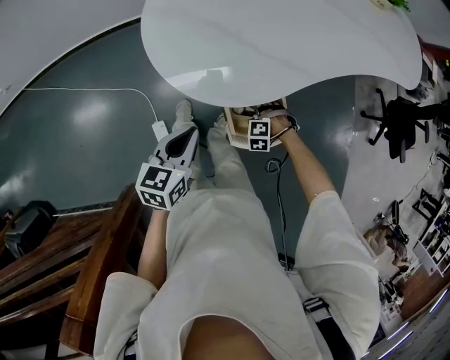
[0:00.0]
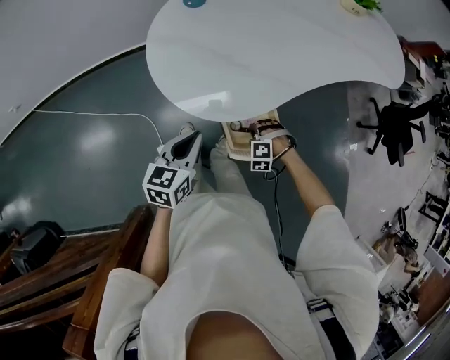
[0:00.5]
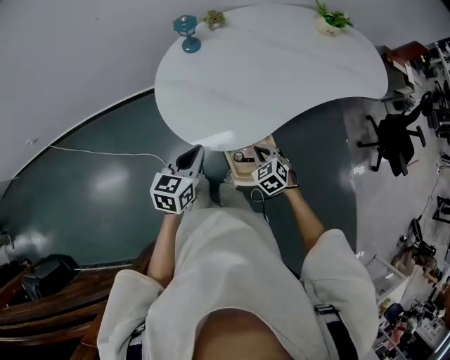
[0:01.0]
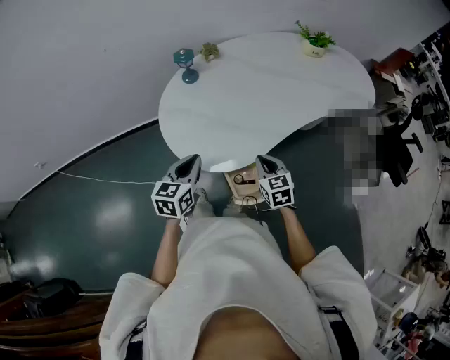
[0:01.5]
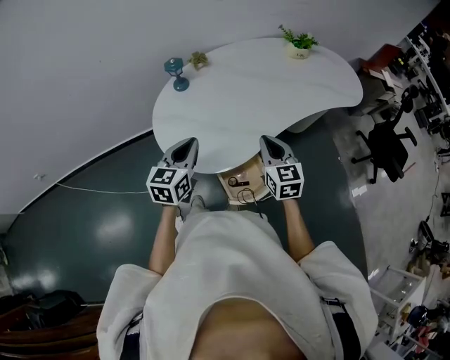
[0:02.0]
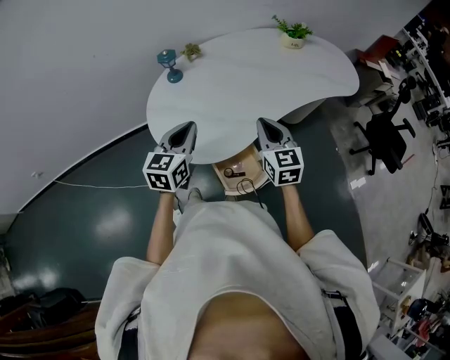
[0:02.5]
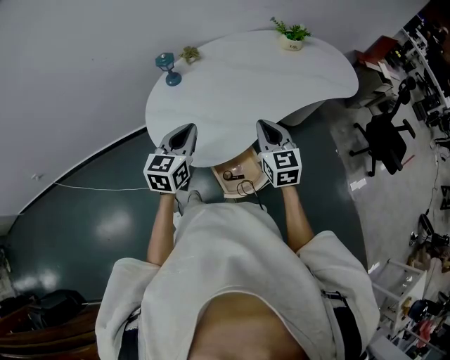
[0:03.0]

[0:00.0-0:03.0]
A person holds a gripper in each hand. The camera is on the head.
0:00.0 to 0:01.5: The right gripper is displaced upward by some 30 cm, rotates around the line of its fingers by about 80 degrees, clockwise from behind, and closes. Meanwhile the left gripper shifts some 10 cm upward.
0:01.5 to 0:03.0: The right gripper shifts about 15 cm upward, and rotates approximately 20 degrees. The left gripper is displaced upward and to the right by about 10 cm.

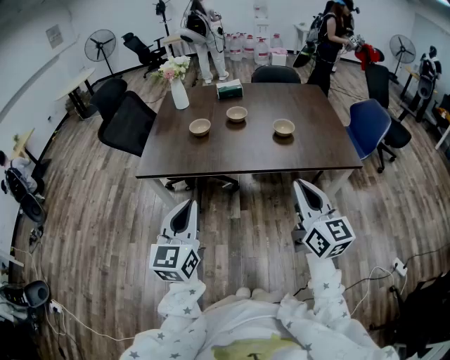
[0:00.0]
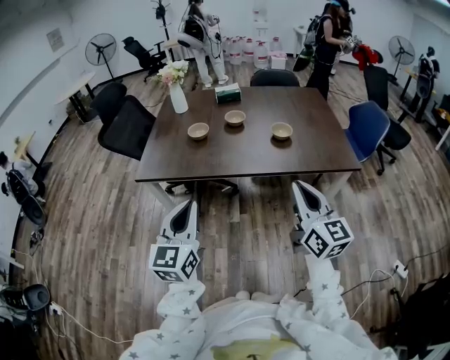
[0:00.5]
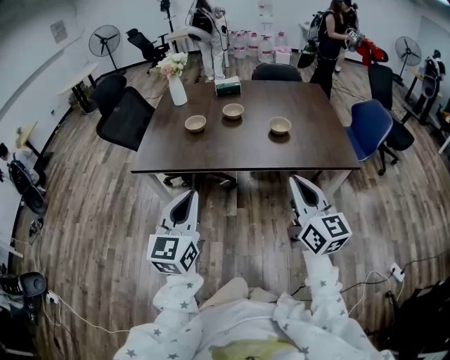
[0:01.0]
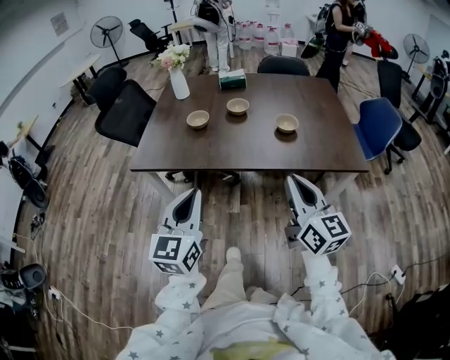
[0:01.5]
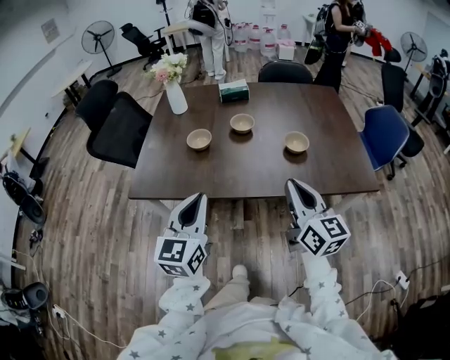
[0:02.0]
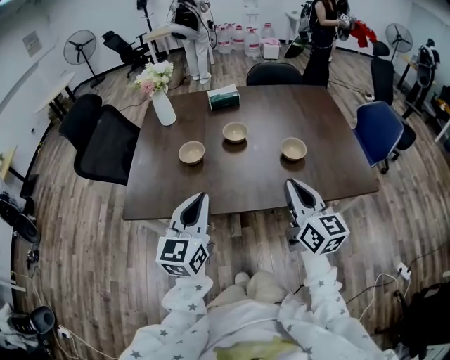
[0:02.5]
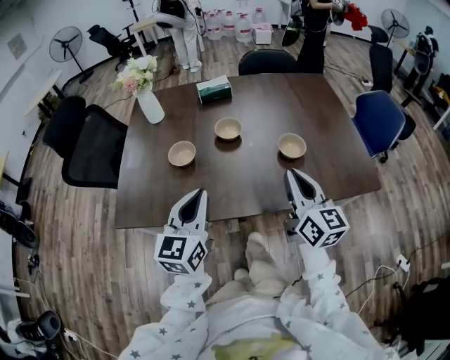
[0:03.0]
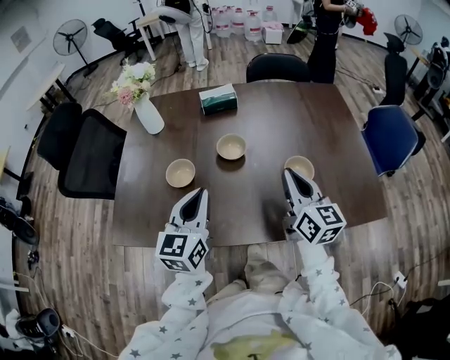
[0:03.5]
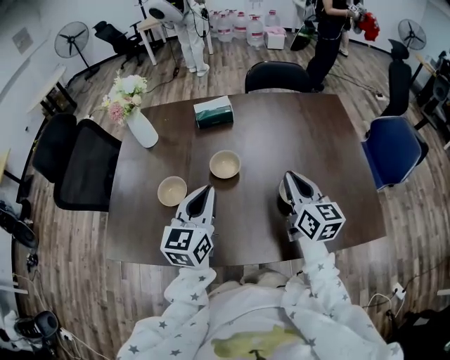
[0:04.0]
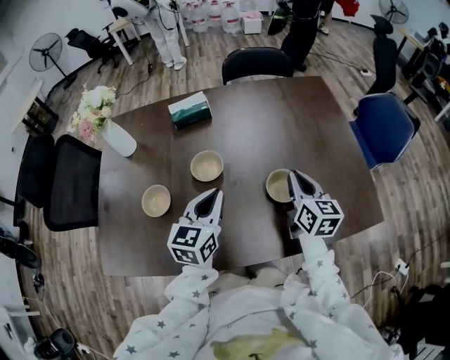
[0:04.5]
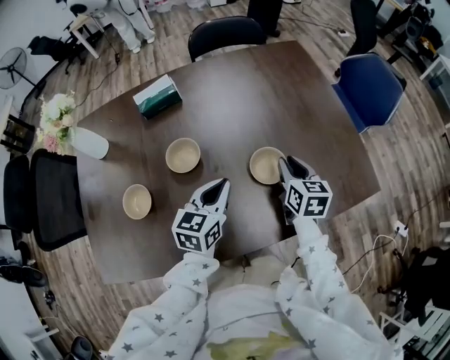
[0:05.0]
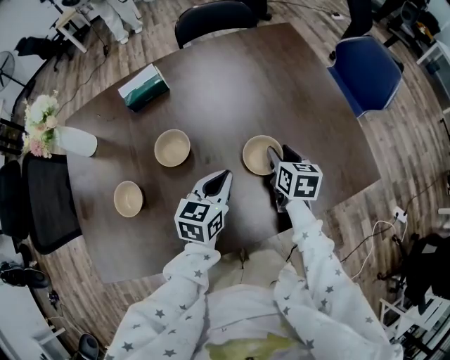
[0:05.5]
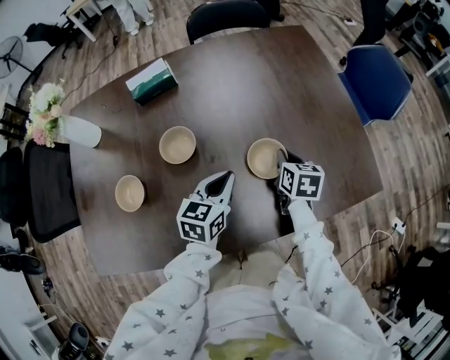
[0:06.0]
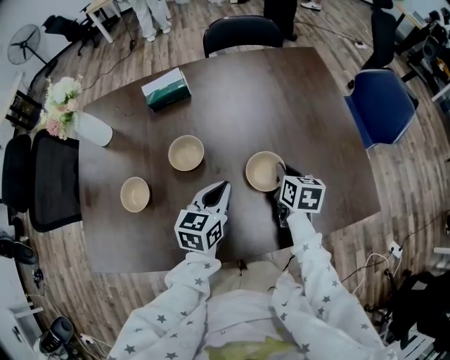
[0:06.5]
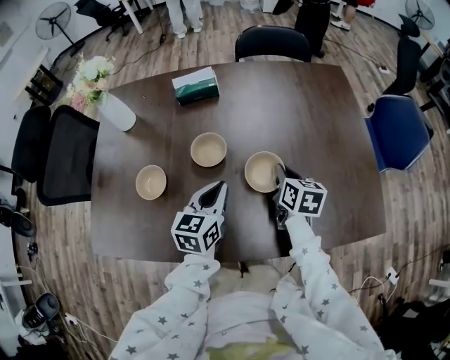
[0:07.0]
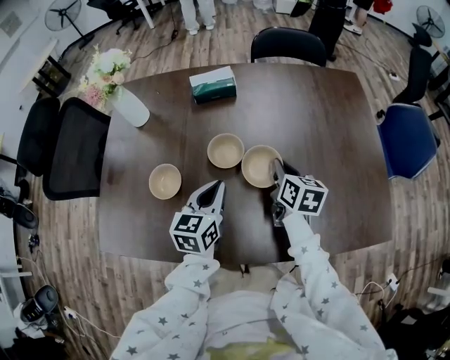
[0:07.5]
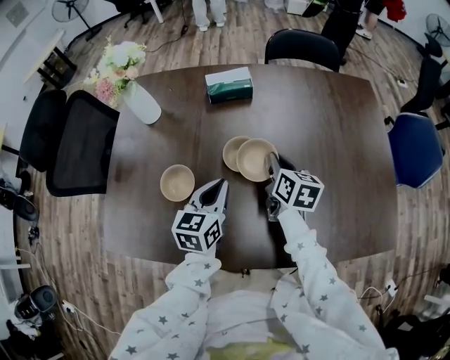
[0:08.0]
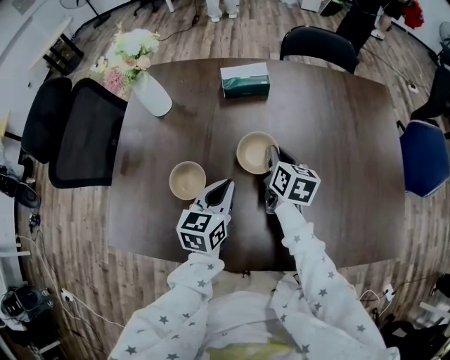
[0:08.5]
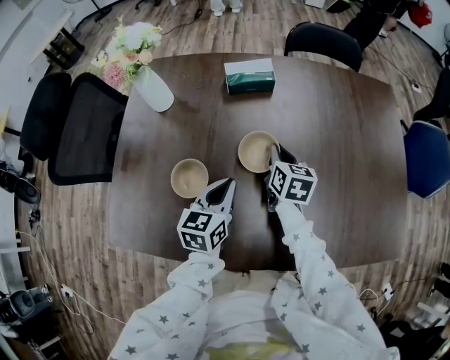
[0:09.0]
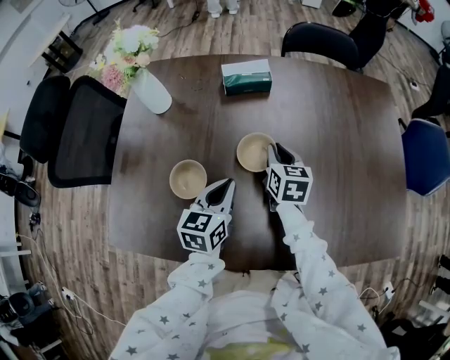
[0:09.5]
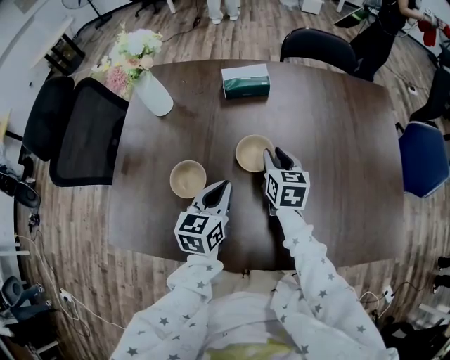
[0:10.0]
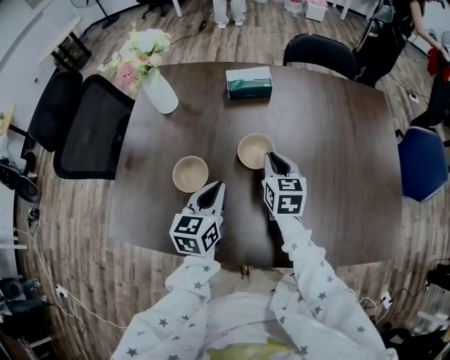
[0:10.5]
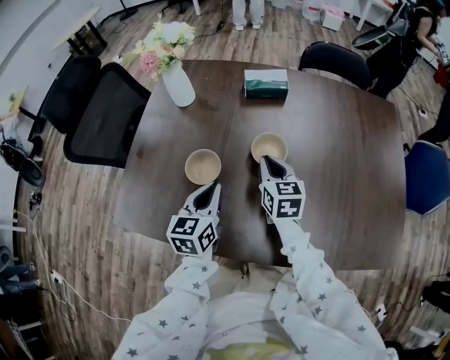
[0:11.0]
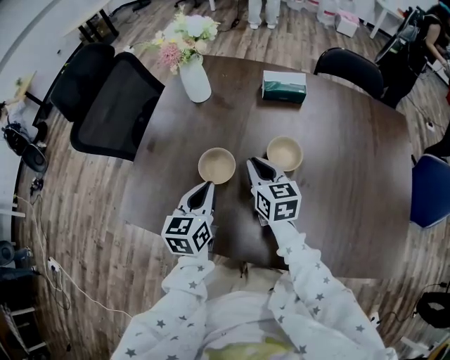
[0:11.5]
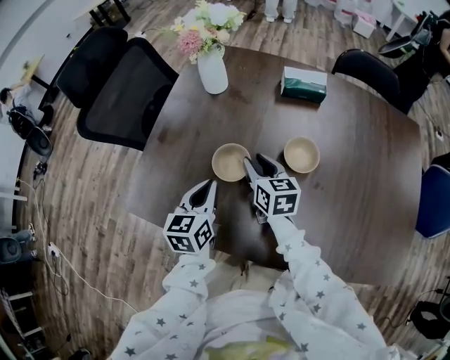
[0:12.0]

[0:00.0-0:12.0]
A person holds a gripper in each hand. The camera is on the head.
0:00.0 to 0:02.0: Both grippers travel together forward, approximately 15 cm.
0:02.0 to 0:04.0: Both grippers move forward, approximately 30 cm.
0:04.0 to 0:06.0: The left gripper shifts by roughly 20 cm, and rotates about 30 degrees. The right gripper heads downward, covering about 20 cm, points its fingers roughly 30 degrees further downward, and opens, then closes again.
0:06.0 to 0:08.0: The grippers both shift to the left by some 20 cm. The right gripper changes its angle by approximately 20 degrees; the left gripper turns by approximately 20 degrees.
0:08.0 to 0:10.0: The right gripper moves some 5 cm, and opens.
0:10.0 to 0:12.0: The grippers both shift to the left by approximately 20 cm. The left gripper changes its angle by approximately 20 degrees. The right gripper rotates roughly 30 degrees.

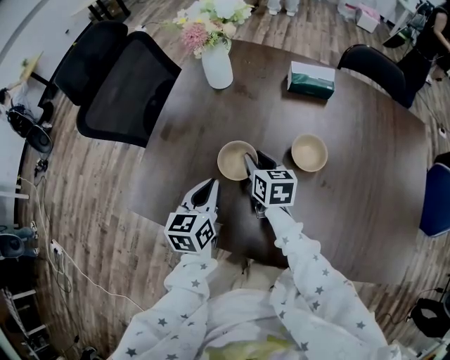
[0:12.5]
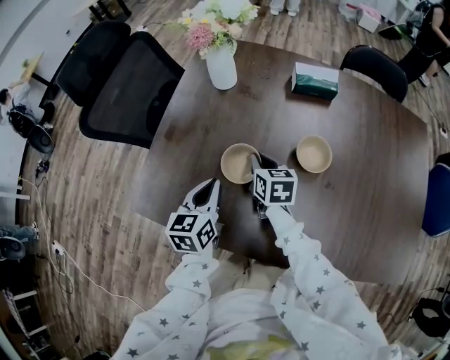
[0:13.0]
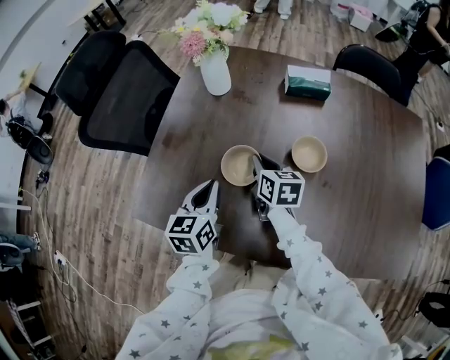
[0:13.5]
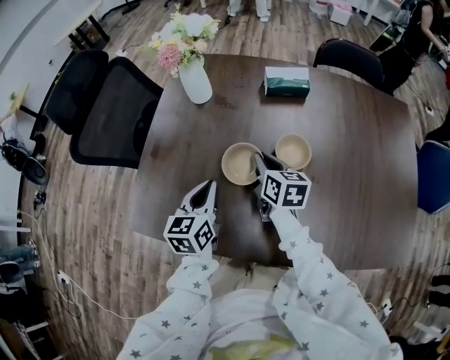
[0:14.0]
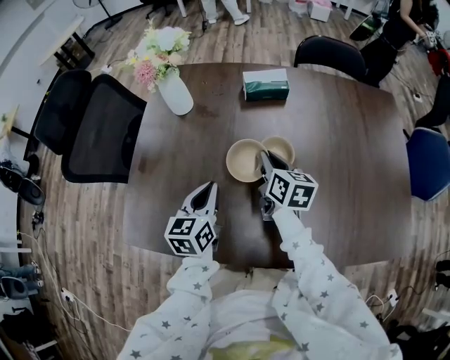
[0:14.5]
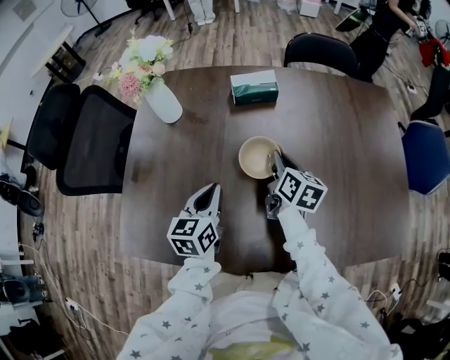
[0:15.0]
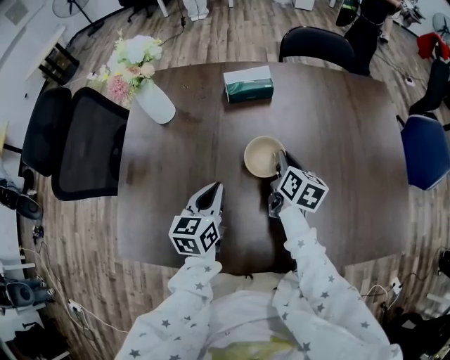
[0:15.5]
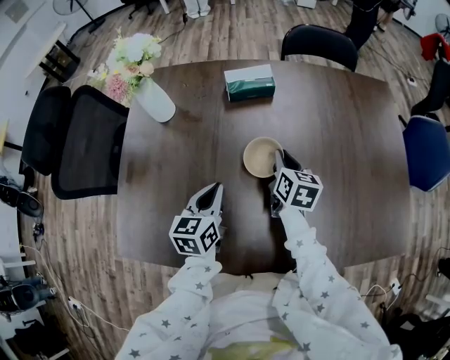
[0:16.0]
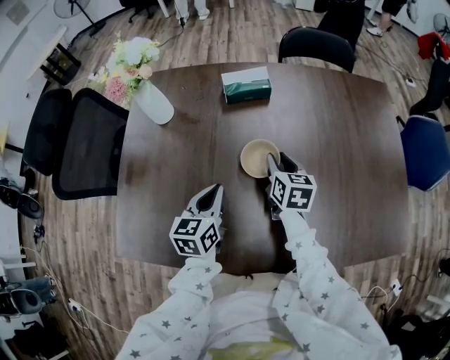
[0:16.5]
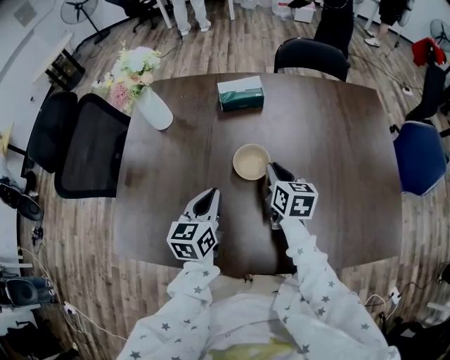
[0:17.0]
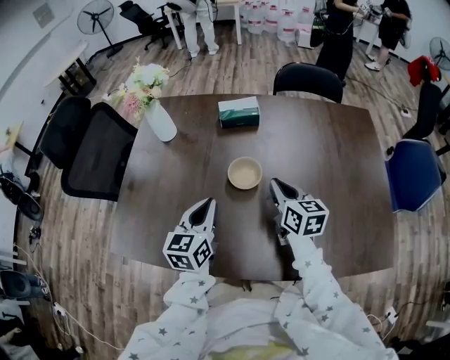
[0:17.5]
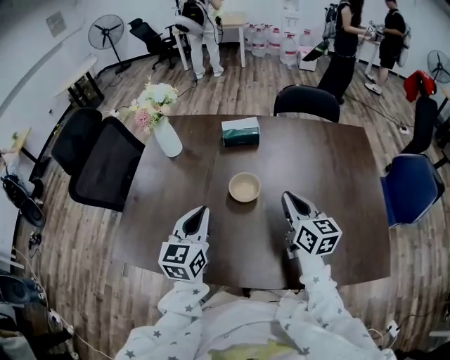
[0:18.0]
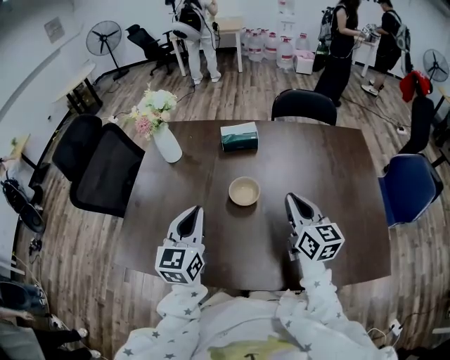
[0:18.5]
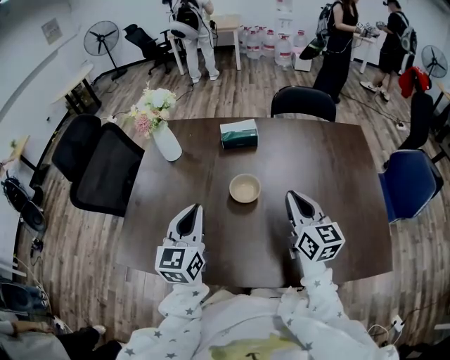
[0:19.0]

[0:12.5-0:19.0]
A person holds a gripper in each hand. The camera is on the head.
0:12.5 to 0:14.5: The left gripper shifts some 5 cm to the right; the right gripper travels to the right and upward by approximately 15 cm, changes its angle by some 20 degrees, and closes up.
0:14.5 to 0:17.0: Both grippers move to the right, approximately 10 cm.
0:17.0 to 0:19.0: The left gripper travels upward by some 15 cm, and rotates roughly 20 degrees. Meanwhile the right gripper is displaced upward, backward and to the right by about 20 cm, and swivels about 30 degrees.

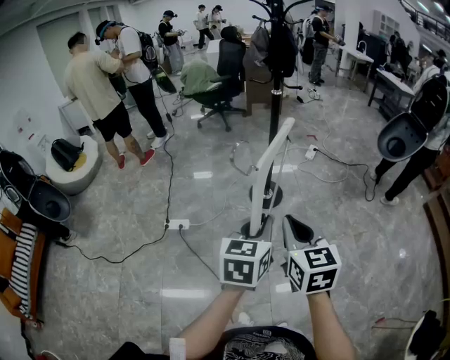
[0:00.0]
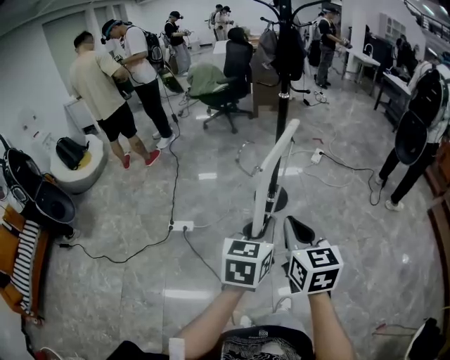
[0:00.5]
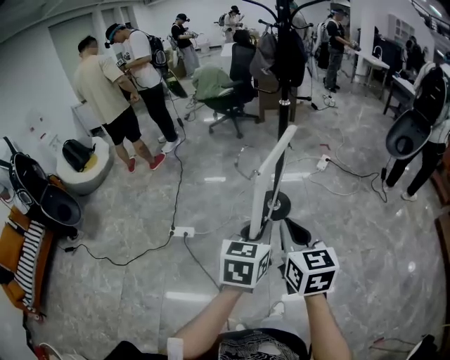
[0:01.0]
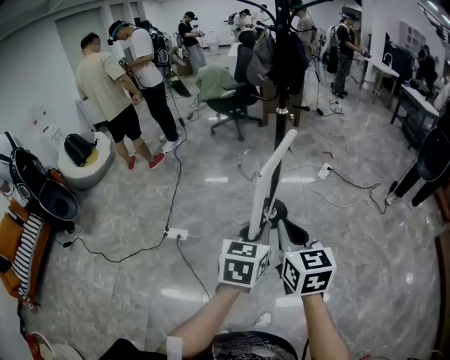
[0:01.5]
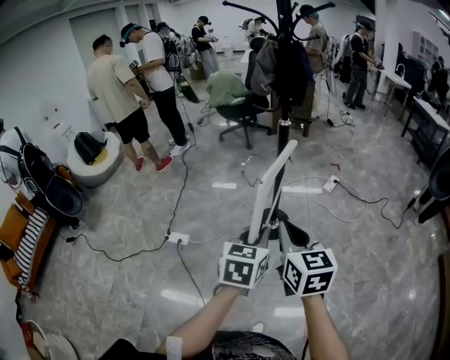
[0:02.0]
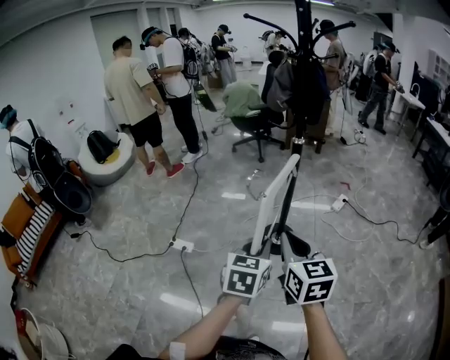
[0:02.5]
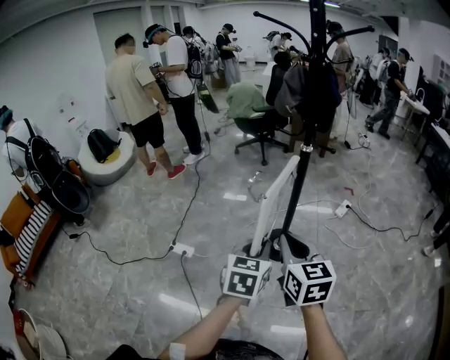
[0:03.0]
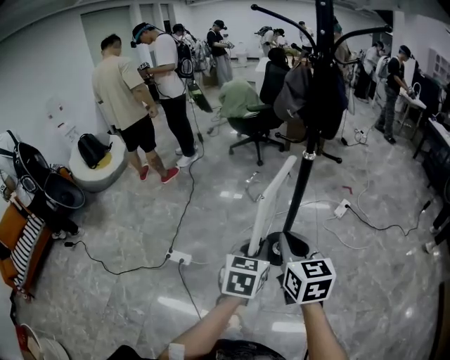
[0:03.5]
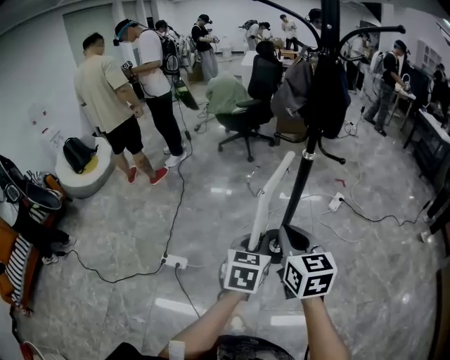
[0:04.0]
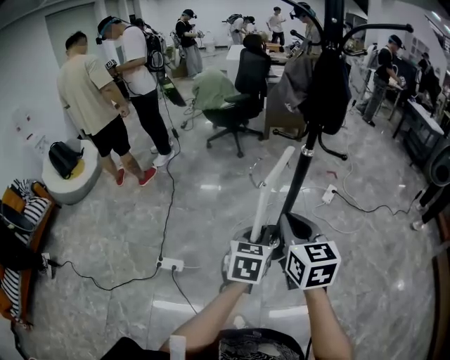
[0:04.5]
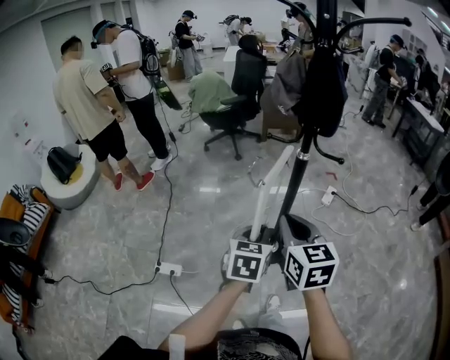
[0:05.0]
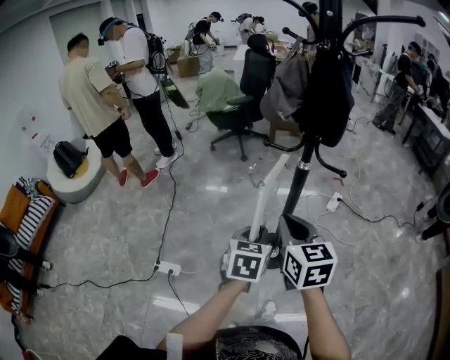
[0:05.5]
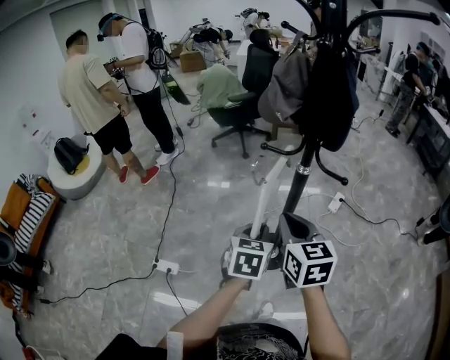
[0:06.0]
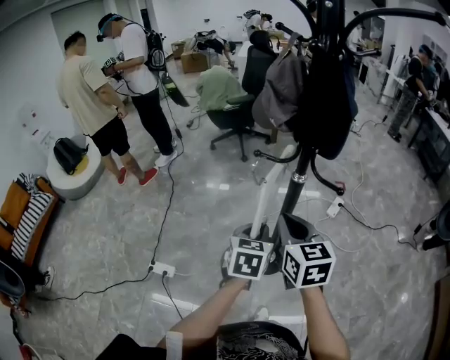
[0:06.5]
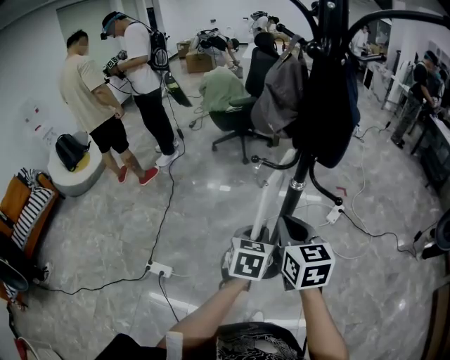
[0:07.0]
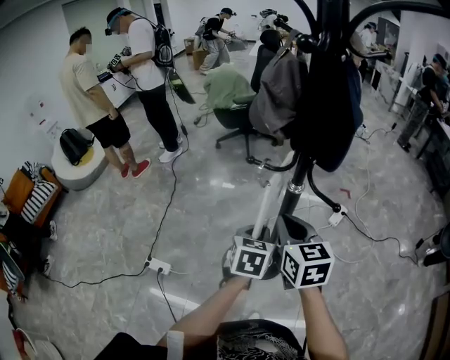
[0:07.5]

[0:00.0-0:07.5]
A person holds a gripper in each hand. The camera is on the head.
0:00.0 to 0:02.0: The grippers both shift forward and to the right by approximately 20 cm.
0:02.0 to 0:04.0: The two grippers go some 20 cm forward.
0:04.0 to 0:05.5: The two grippers go about 10 cm forward.
0:05.5 to 0:07.5: The grippers both shift forward and to the right by approximately 15 cm.